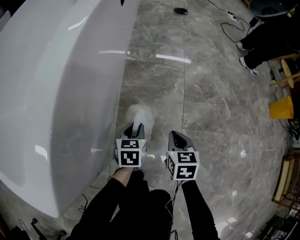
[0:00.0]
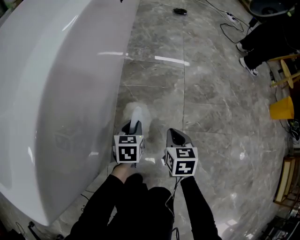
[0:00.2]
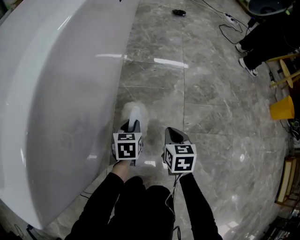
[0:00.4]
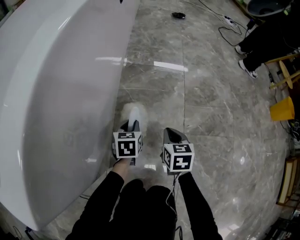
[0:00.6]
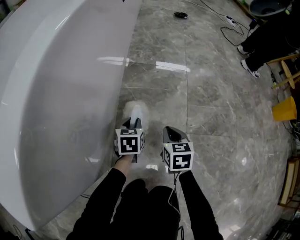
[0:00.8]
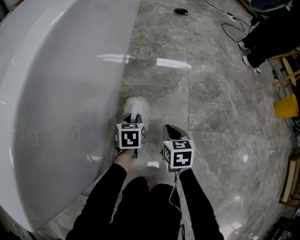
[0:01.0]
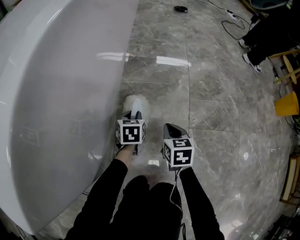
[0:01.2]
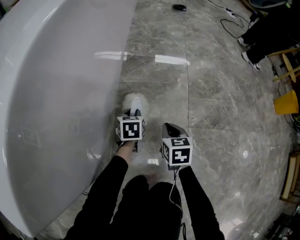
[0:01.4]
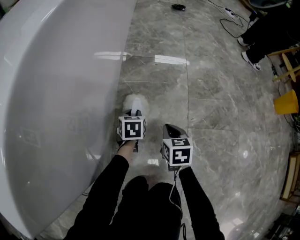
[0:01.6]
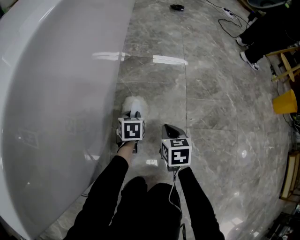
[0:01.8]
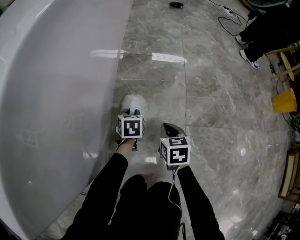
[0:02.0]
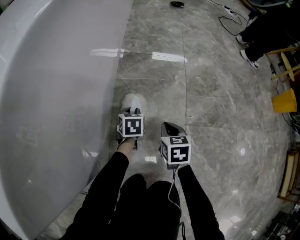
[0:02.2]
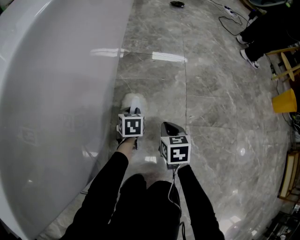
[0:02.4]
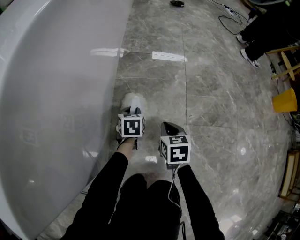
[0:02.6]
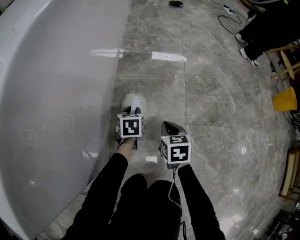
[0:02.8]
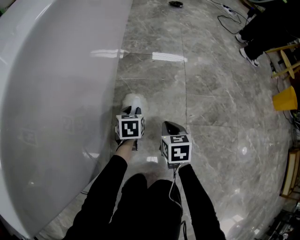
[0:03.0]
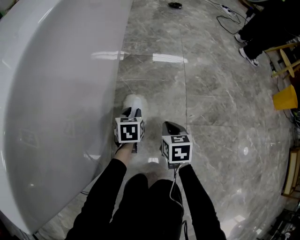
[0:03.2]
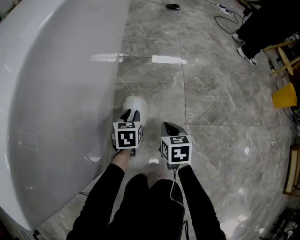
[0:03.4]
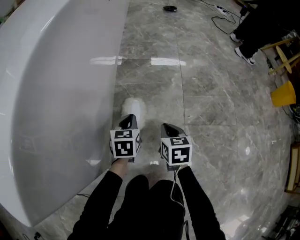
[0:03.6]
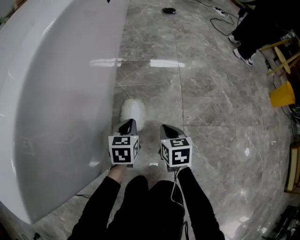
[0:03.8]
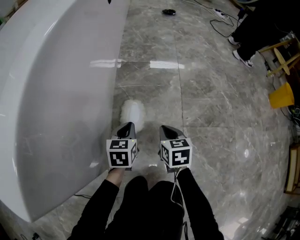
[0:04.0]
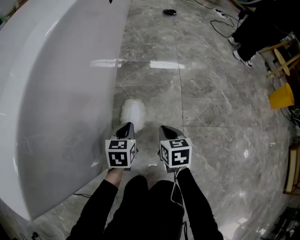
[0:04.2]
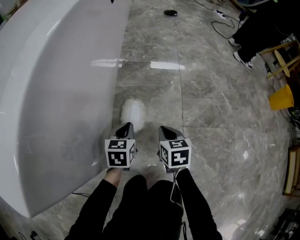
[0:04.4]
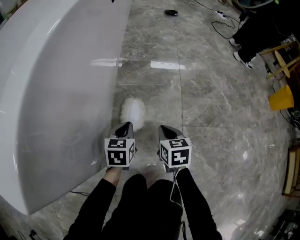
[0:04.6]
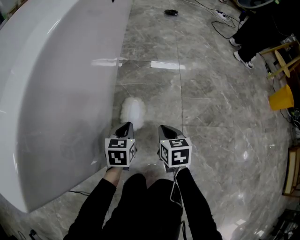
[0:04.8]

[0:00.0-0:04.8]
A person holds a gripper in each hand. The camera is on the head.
0.0 to 1.6 s: The right gripper heads downward, covering some 10 cm. Meanwhile the left gripper shifts roughly 15 cm downward and forward.
1.6 to 3.2 s: The grippers make only small movements.
3.2 to 4.8 s: The left gripper heads backward and upward, covering about 10 cm, and closes its fingers.

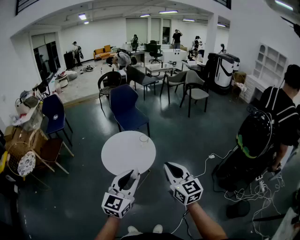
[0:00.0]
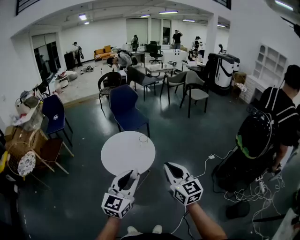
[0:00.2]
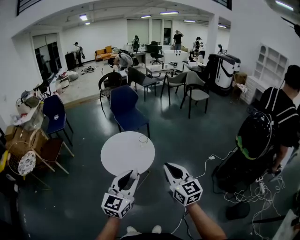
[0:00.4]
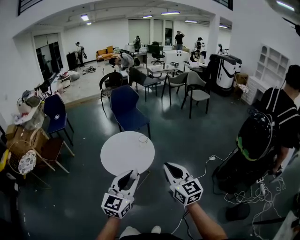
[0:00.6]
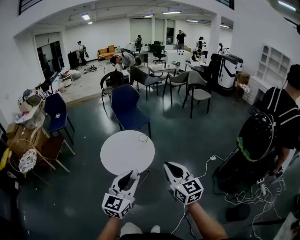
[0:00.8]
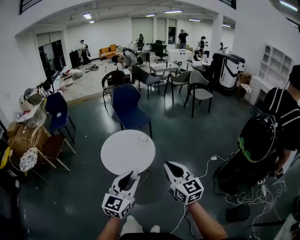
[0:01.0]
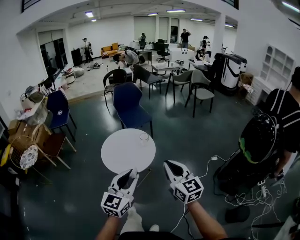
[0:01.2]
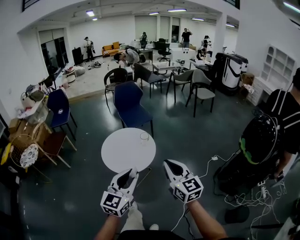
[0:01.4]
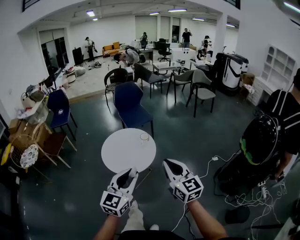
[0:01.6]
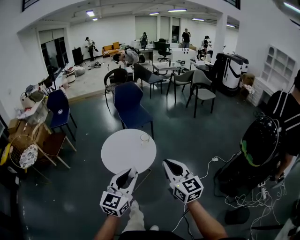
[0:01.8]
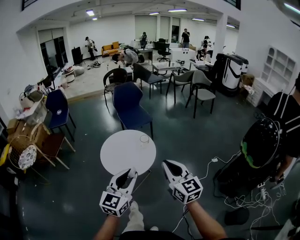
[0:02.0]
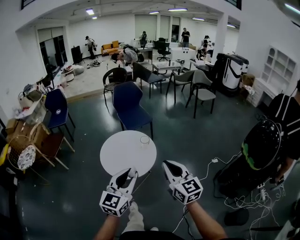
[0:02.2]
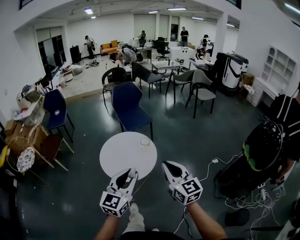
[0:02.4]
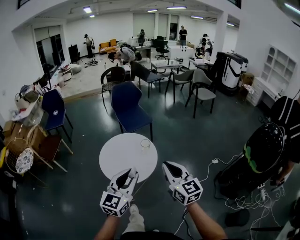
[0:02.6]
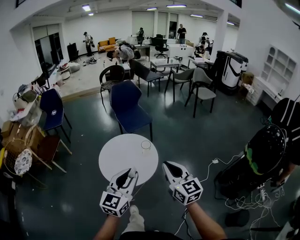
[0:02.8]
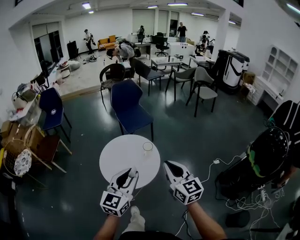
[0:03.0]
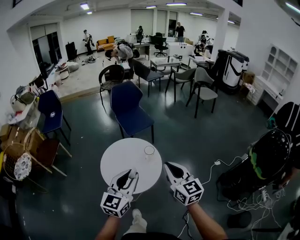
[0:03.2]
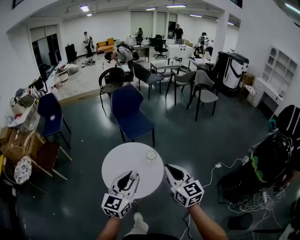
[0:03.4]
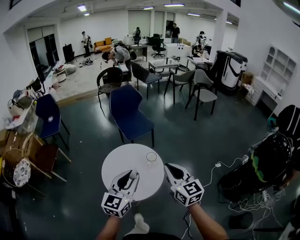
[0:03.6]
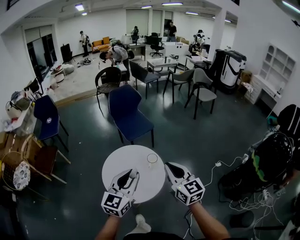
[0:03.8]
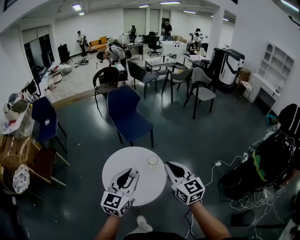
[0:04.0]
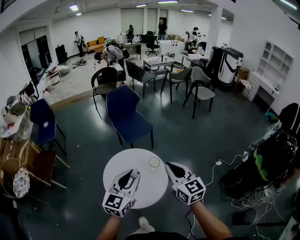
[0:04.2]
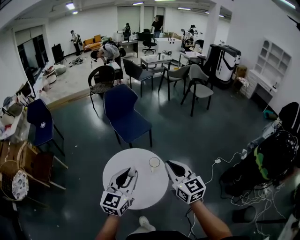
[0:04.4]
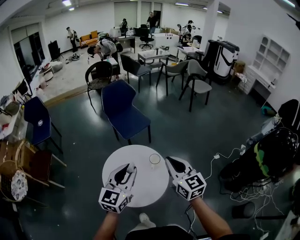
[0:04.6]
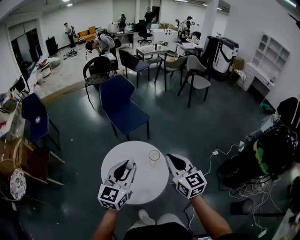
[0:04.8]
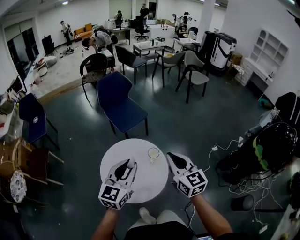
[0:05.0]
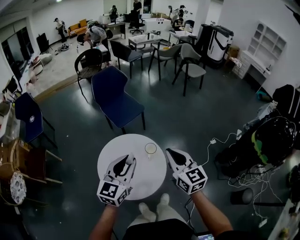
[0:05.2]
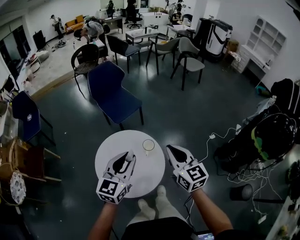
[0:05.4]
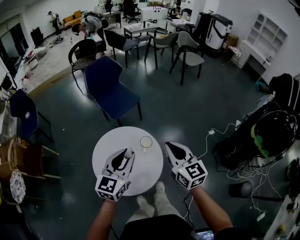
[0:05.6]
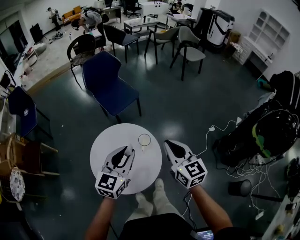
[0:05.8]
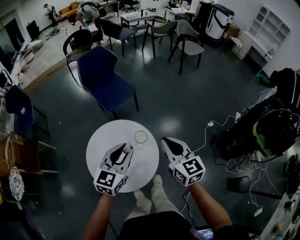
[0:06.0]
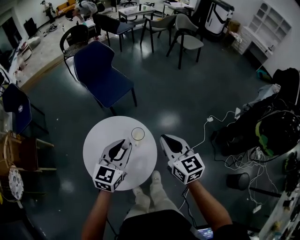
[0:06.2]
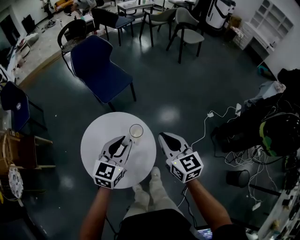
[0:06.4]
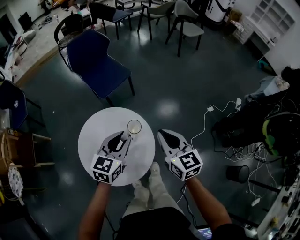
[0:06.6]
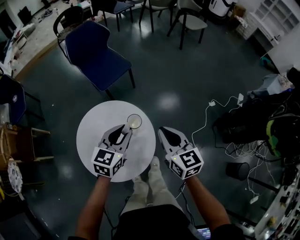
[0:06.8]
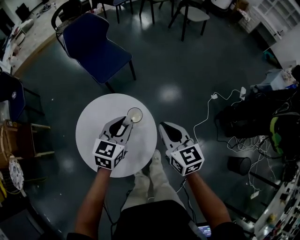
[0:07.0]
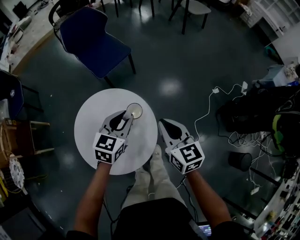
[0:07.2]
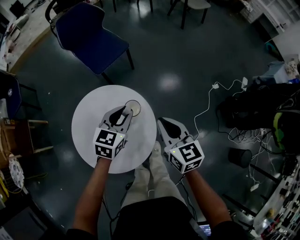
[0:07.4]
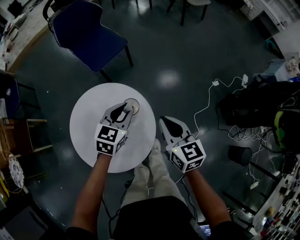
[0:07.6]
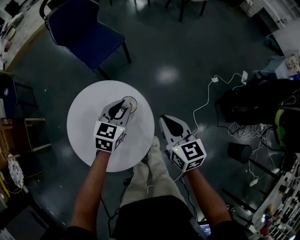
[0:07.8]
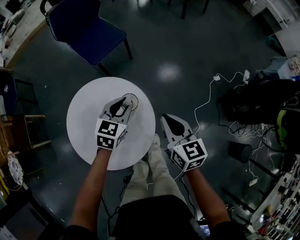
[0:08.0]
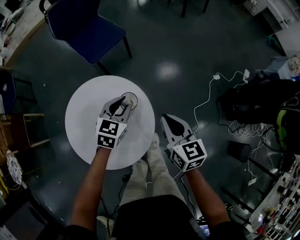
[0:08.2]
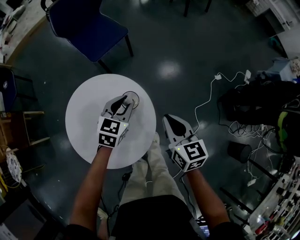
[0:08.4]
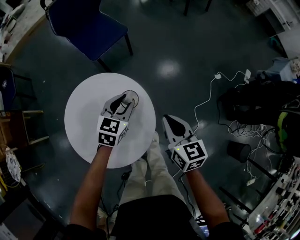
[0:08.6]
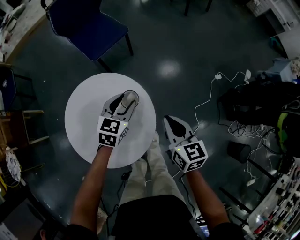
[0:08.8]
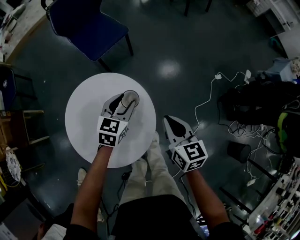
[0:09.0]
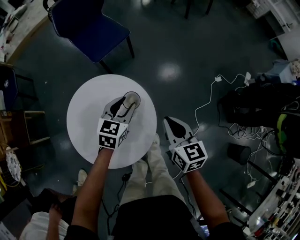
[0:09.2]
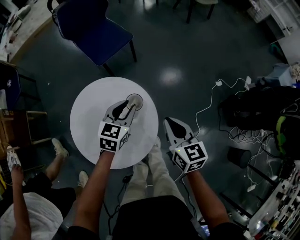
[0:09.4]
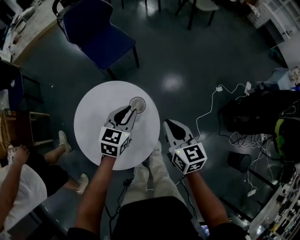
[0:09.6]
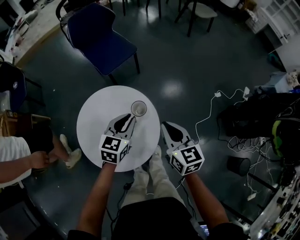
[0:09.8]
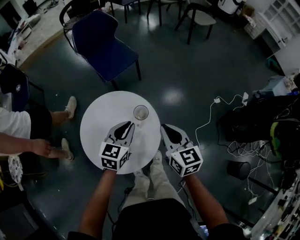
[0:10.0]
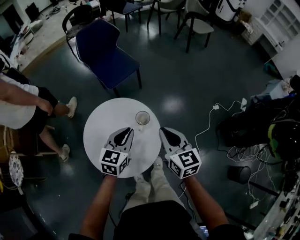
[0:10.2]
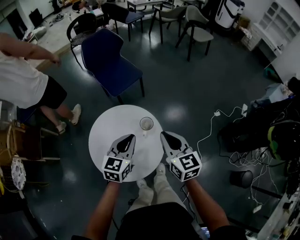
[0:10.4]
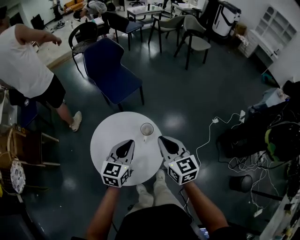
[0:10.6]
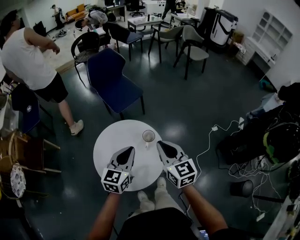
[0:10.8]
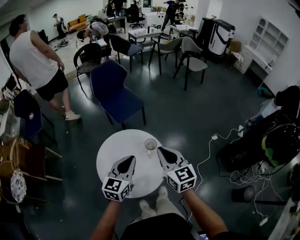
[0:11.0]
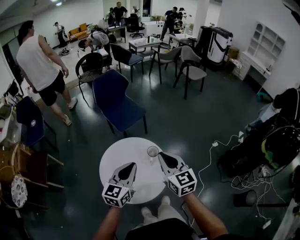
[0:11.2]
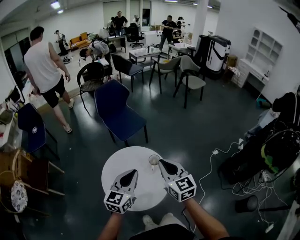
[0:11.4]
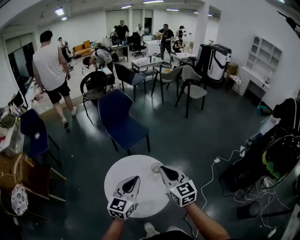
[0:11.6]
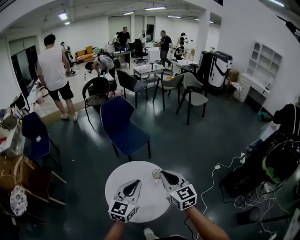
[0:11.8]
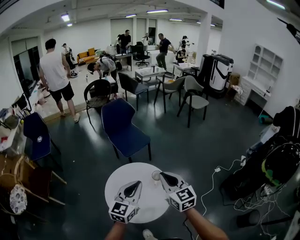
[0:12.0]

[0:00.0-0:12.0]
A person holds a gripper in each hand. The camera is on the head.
0.0 to 1.6 s: The left gripper shifts by some 5 cm. The right gripper changes place by roughly 5 cm.
1.6 to 3.0 s: Both grippers move forward, about 25 cm.
3.0 to 4.4 s: Both grippers travel together forward and to the left, some 25 cm.
4.4 to 6.0 s: The two grippers go some 20 cm forward, downward and to the right.
6.0 to 7.6 s: The two grippers go approximately 25 cm downward and forward.
7.6 to 9.0 s: The two grippers go roughly 5 cm downward. The left gripper opens.
9.0 to 10.4 s: The right gripper is displaced upward, to the left and backward by approximately 25 cm, while the left gripper is displaced upward and backward by approximately 25 cm, and closes up.
10.4 to 12.0 s: The left gripper heads upward, backward and to the left, covering some 25 cm; the right gripper is displaced upward, to the left and backward by some 25 cm.

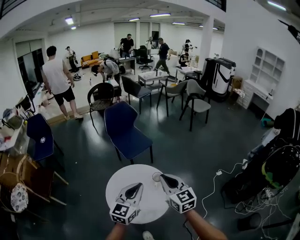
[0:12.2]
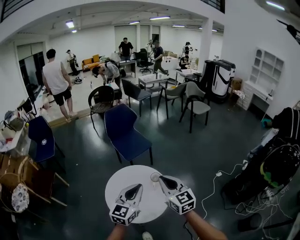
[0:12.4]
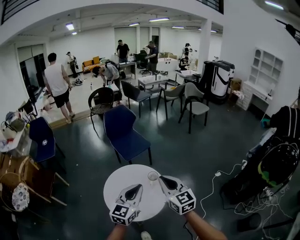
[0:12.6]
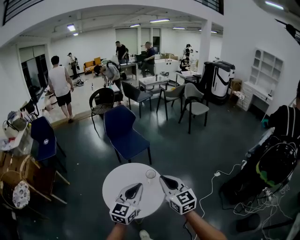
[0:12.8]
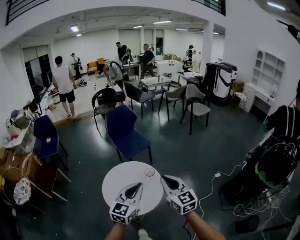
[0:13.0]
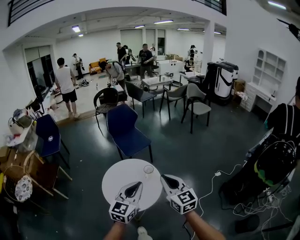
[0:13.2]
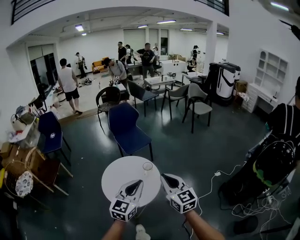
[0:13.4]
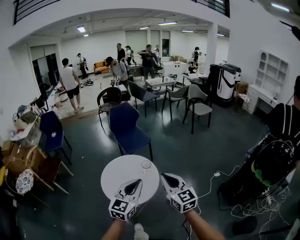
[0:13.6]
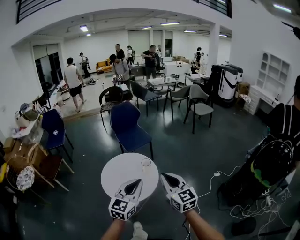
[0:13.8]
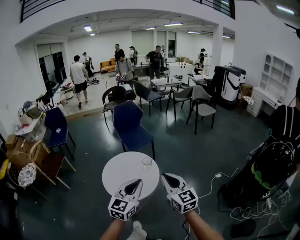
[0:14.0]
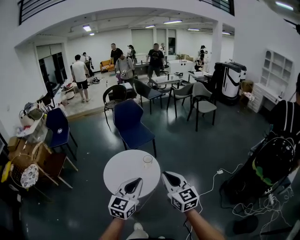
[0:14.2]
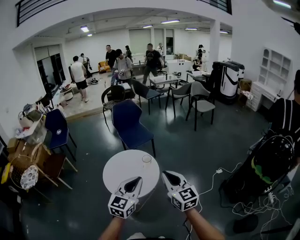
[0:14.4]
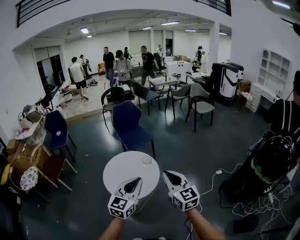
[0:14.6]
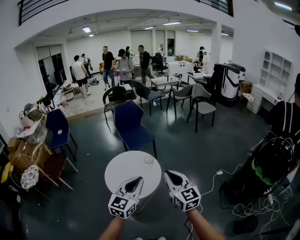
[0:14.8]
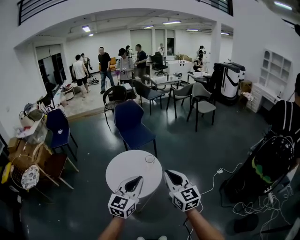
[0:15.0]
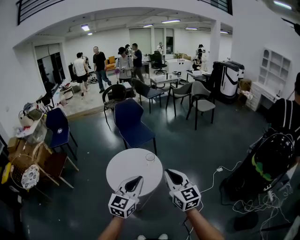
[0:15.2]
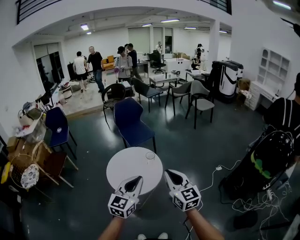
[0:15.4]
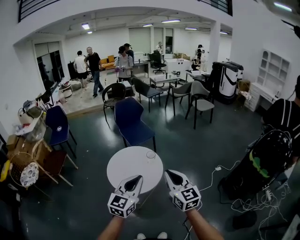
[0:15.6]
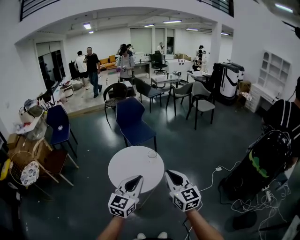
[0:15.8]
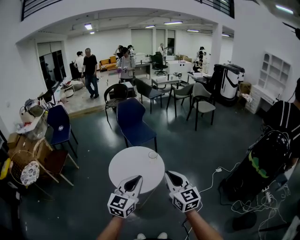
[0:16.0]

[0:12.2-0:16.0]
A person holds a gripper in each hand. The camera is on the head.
12.2 to 13.4 s: Both grippers travel together backward and to the right, about 25 cm.
13.4 to 14.8 s: The grippers both shift backward by some 10 cm.
14.8 to 16.0 s: The two grippers go roughly 10 cm backward and to the left.

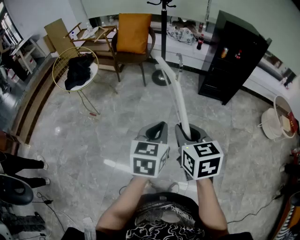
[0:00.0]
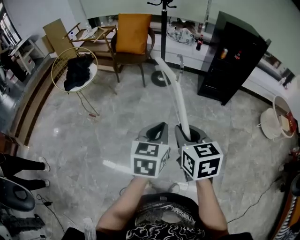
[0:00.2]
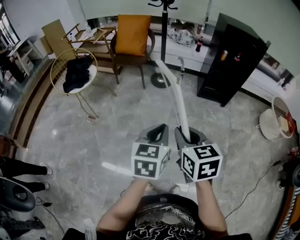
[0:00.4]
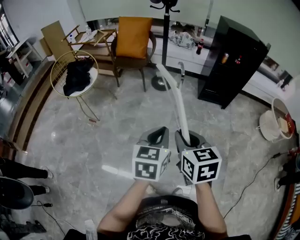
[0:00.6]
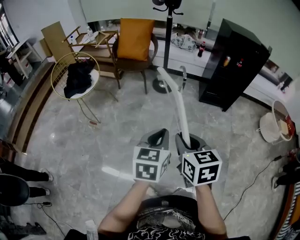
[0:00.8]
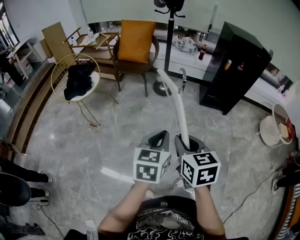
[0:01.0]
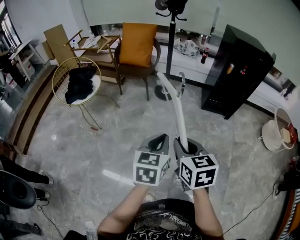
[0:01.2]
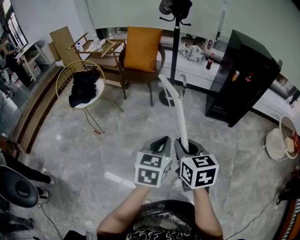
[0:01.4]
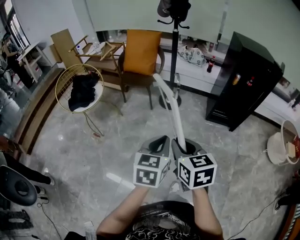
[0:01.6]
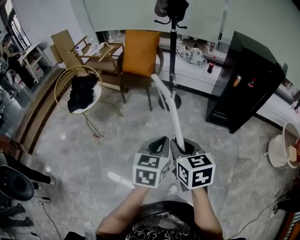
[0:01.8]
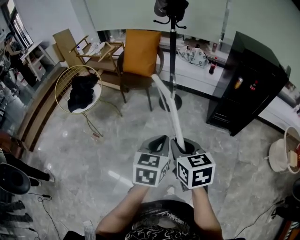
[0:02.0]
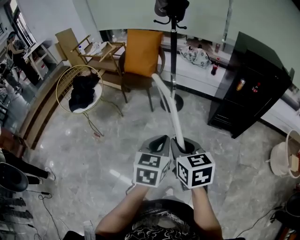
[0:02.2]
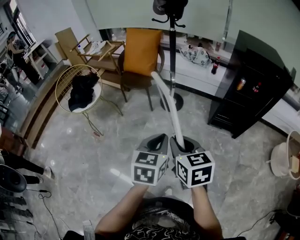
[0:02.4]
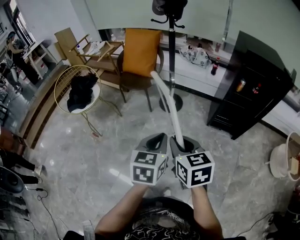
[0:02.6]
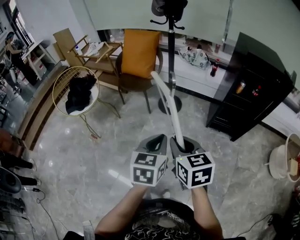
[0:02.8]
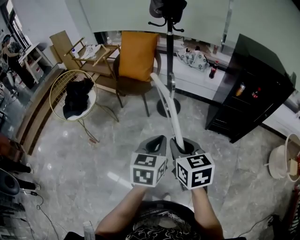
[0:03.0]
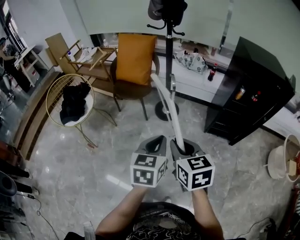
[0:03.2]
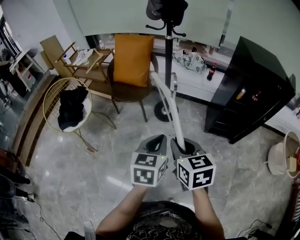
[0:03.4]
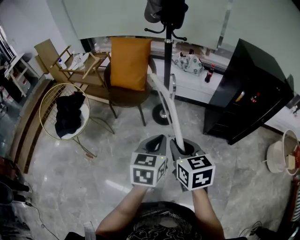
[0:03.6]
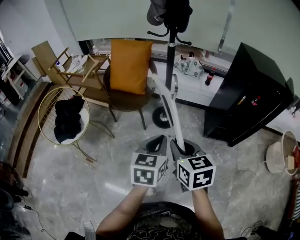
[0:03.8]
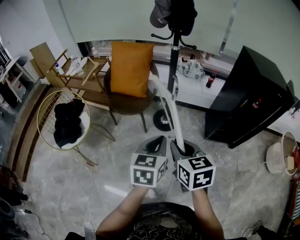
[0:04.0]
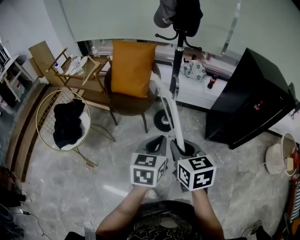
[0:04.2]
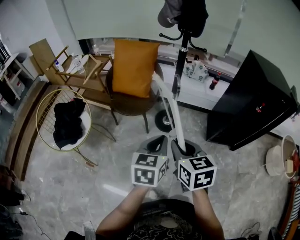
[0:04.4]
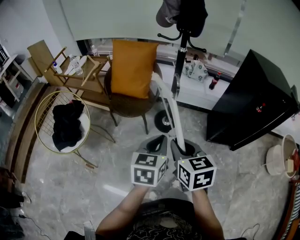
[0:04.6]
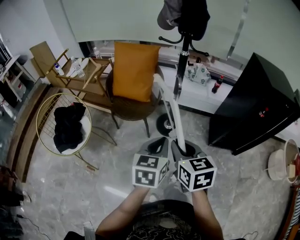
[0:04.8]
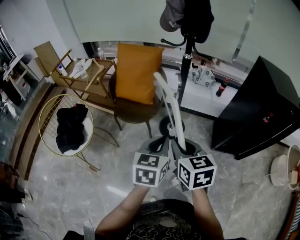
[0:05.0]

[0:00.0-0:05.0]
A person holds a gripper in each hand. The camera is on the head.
0.0 to 1.6 s: The grippers both shift forward by roughly 15 cm.
1.6 to 3.4 s: The two grippers go some 25 cm forward.
3.4 to 5.0 s: The grippers both shift forward and to the left by roughly 20 cm.
